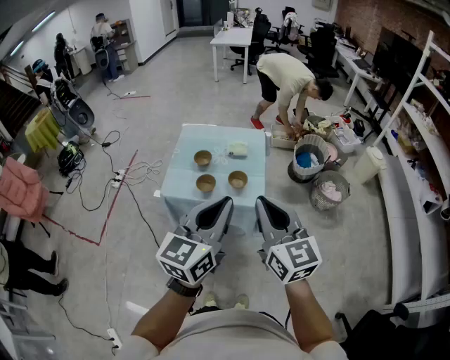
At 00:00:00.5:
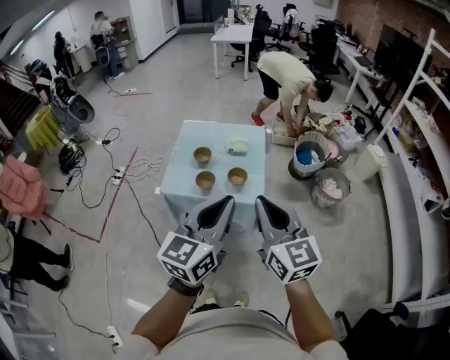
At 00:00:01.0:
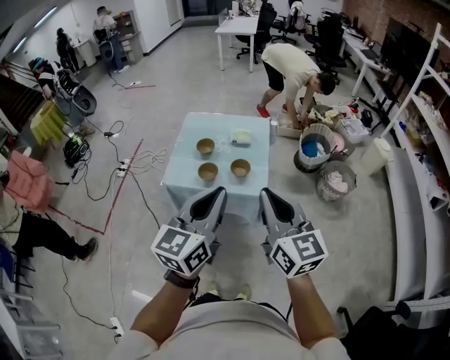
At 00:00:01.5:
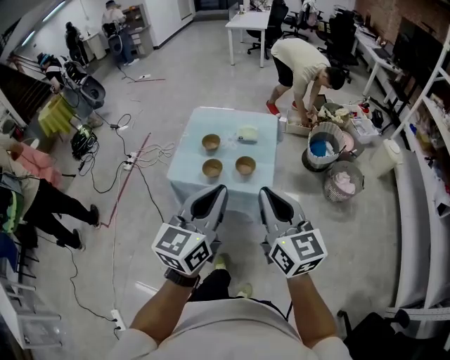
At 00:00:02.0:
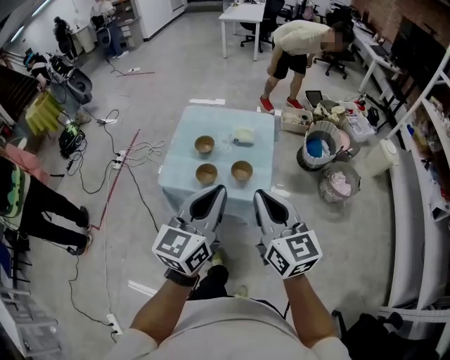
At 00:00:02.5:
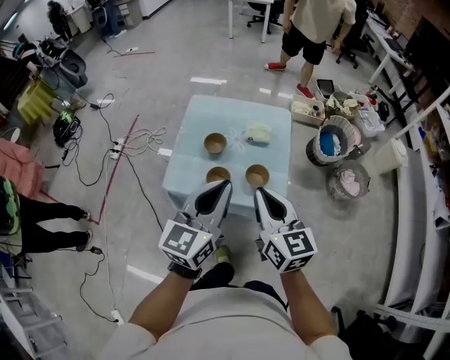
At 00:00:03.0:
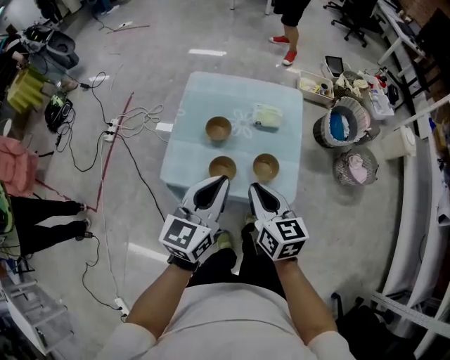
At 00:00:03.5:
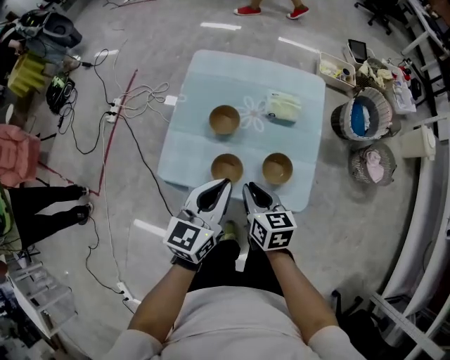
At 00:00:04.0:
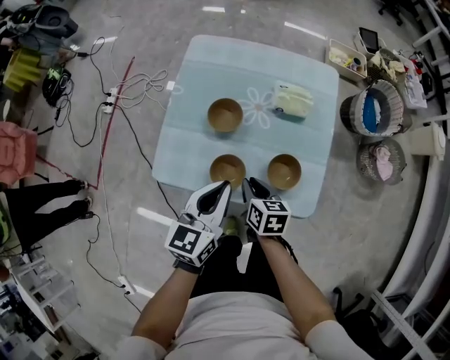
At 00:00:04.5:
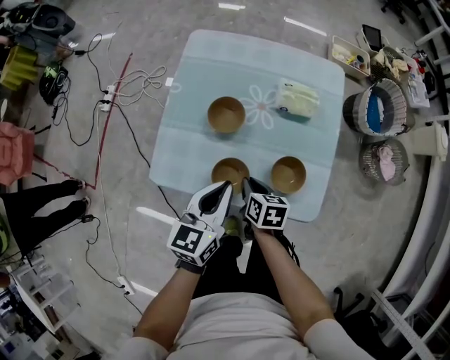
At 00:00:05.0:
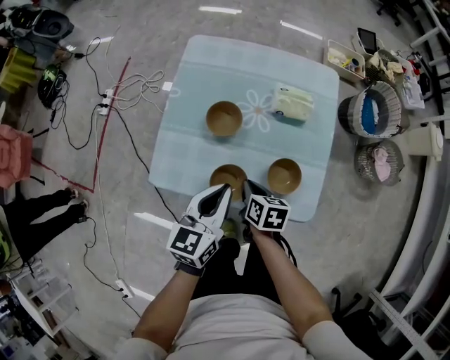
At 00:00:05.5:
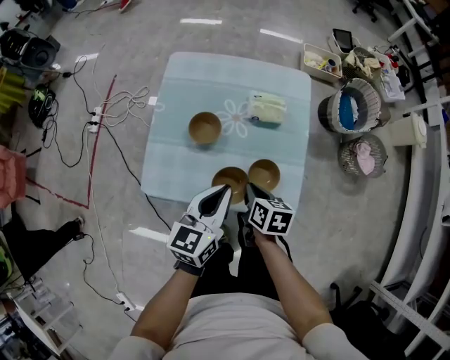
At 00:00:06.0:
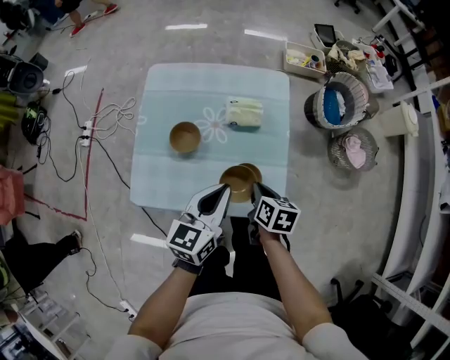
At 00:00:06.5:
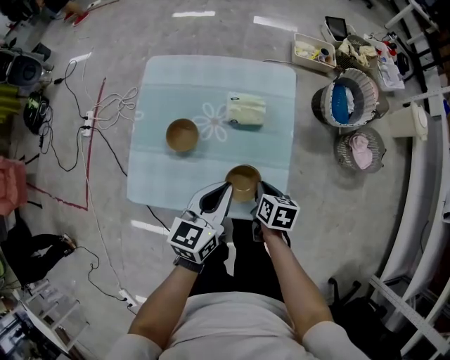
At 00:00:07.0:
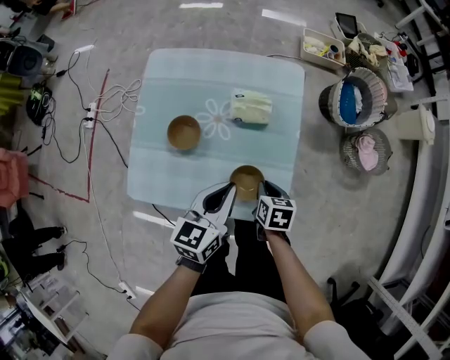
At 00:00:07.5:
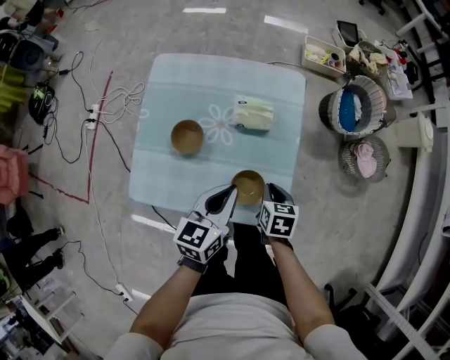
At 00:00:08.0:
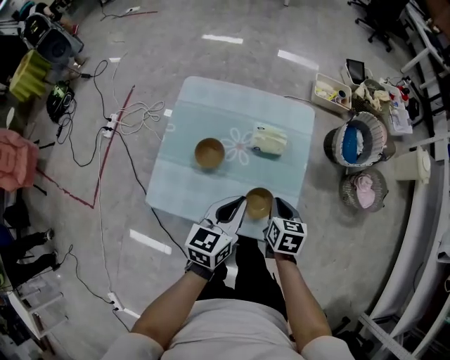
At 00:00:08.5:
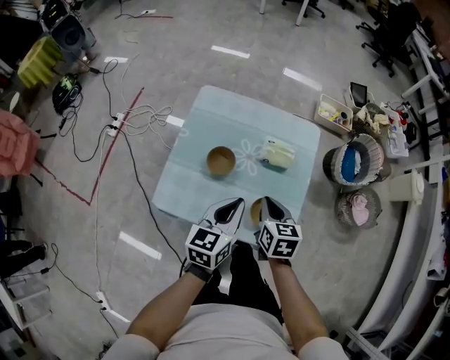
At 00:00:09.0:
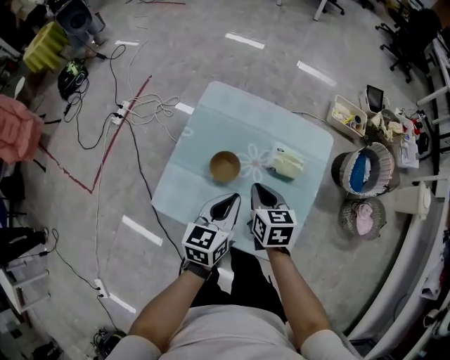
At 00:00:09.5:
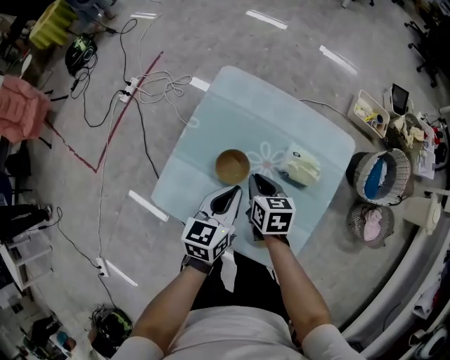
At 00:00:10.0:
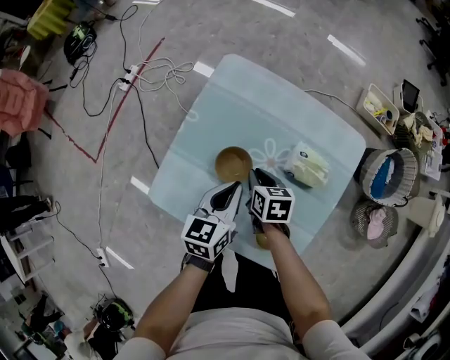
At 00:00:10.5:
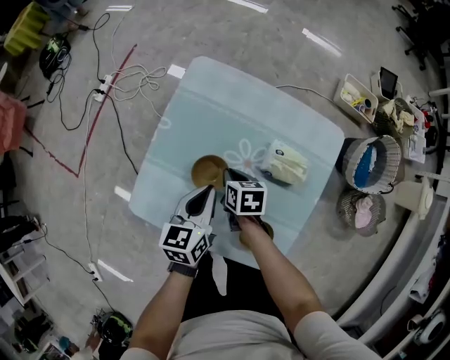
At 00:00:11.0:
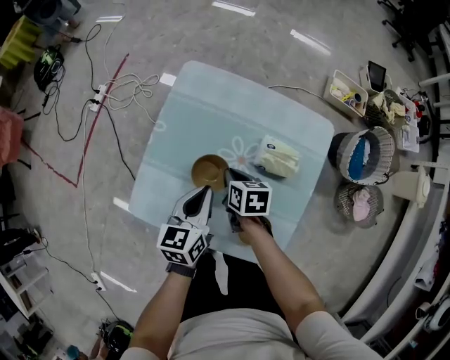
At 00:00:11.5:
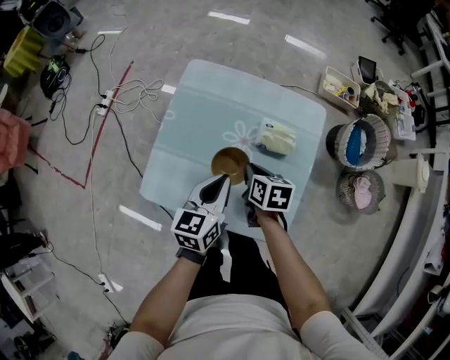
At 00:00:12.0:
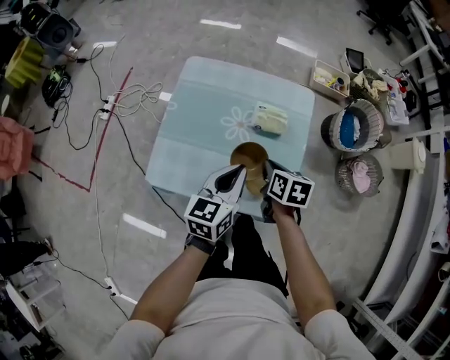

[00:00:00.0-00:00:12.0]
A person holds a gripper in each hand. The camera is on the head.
00:00:00.0 to 00:00:02.0: The grippers both shift forward and downward by about 10 cm.
00:00:02.0 to 00:00:04.0: The grippers both shift downward and forward by roughly 50 cm. The right gripper tilts its fingers approximately 40 degrees downward; the left gripper changes its angle by some 20 degrees.
00:00:04.0 to 00:00:06.0: Both grippers move to the right, approximately 10 cm.
00:00:06.0 to 00:00:08.0: The right gripper travels downward and back again, approximately 10 cm each way.
00:00:08.0 to 00:00:10.0: The left gripper changes place by about 20 cm, and changes its angle by roughly 20 degrees; the right gripper ends up approximately 25 cm from where it was, and swivels some 30 degrees.
00:00:10.0 to 00:00:12.0: The two grippers go about 20 cm backward, upward and to the right. The right gripper turns by some 20 degrees.

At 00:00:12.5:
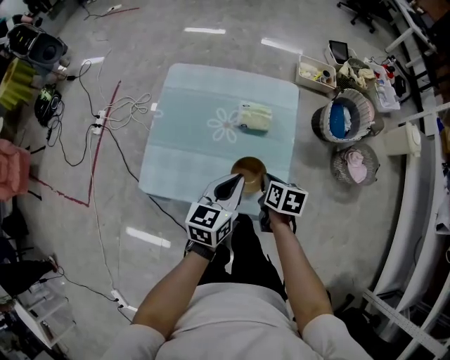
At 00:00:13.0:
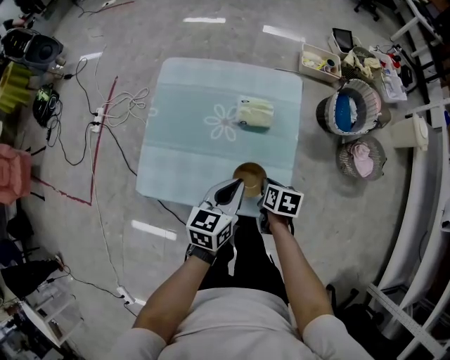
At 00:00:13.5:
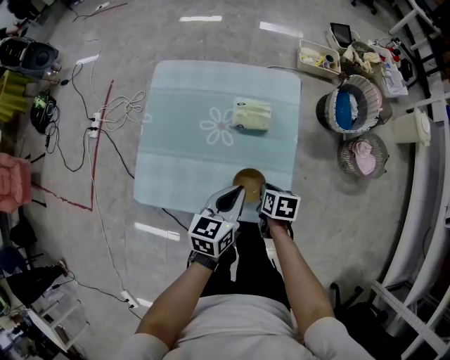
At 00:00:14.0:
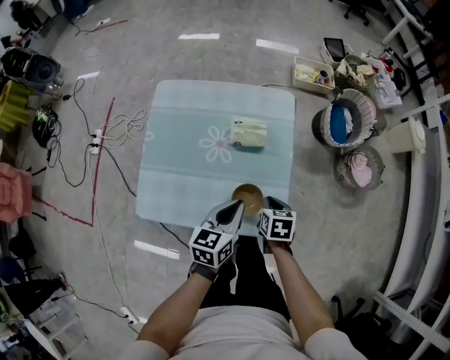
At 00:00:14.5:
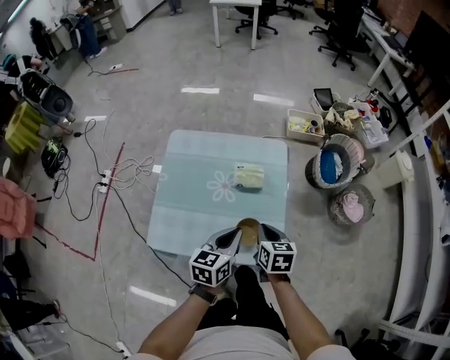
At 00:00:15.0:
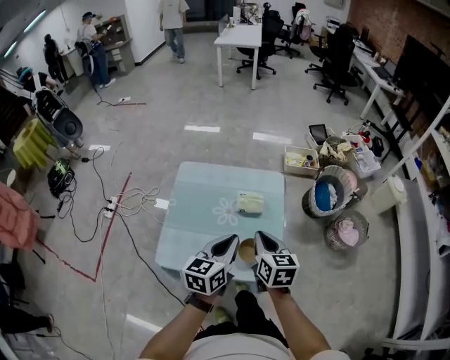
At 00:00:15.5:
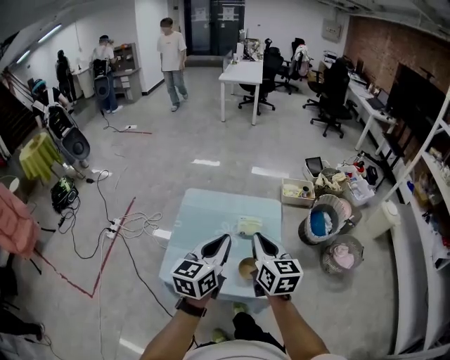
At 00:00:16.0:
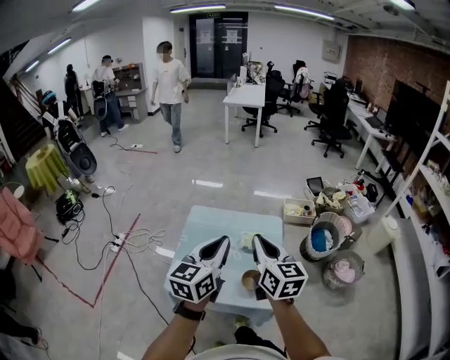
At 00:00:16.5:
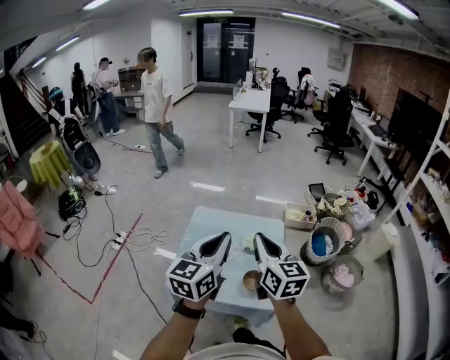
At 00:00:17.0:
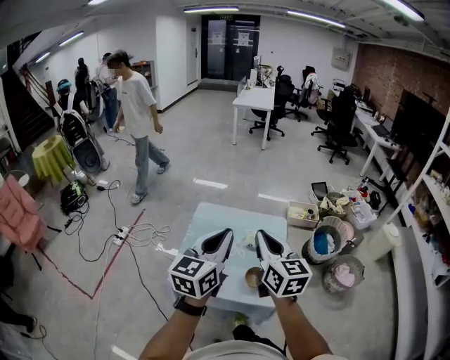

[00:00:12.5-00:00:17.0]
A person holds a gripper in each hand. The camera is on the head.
00:00:12.5 to 00:00:14.5: The right gripper moves upward, about 5 cm.
00:00:14.5 to 00:00:17.0: The two grippers go some 35 cm upward. The right gripper angles its fingers upward, by approximately 40 degrees; the left gripper turns by roughly 30 degrees.

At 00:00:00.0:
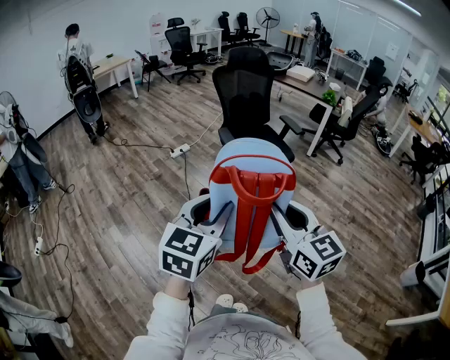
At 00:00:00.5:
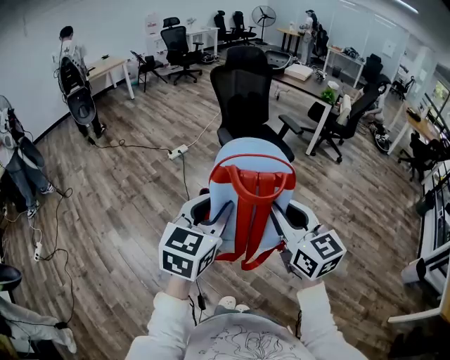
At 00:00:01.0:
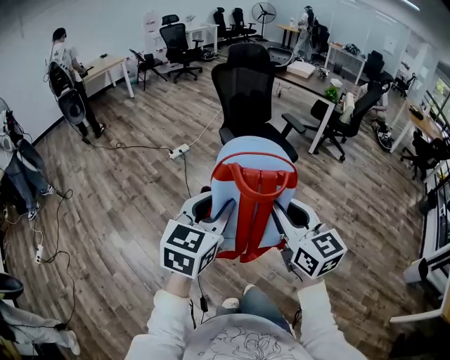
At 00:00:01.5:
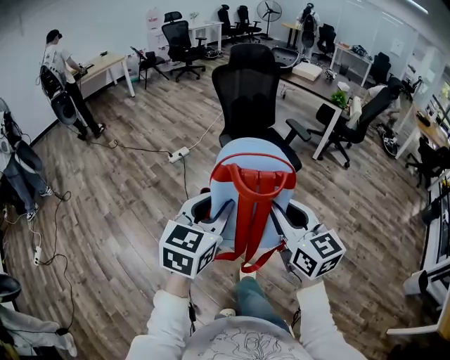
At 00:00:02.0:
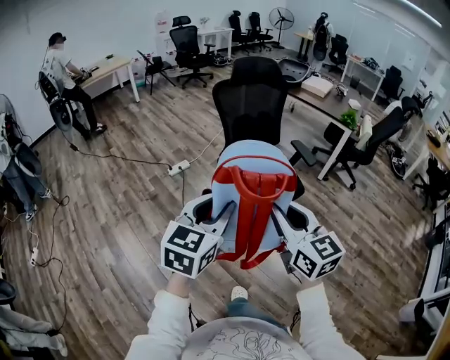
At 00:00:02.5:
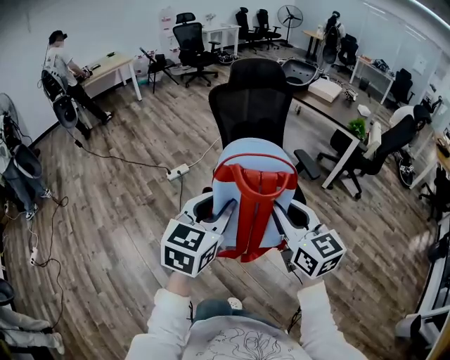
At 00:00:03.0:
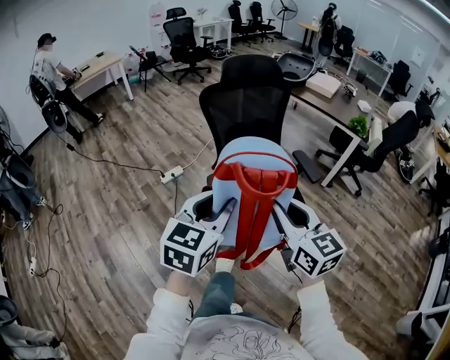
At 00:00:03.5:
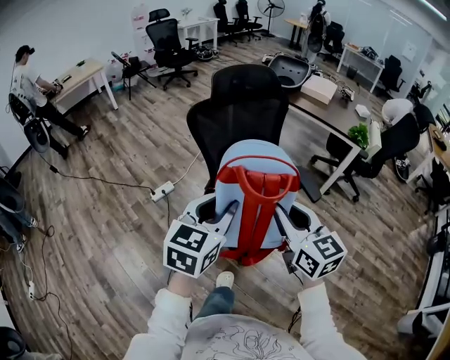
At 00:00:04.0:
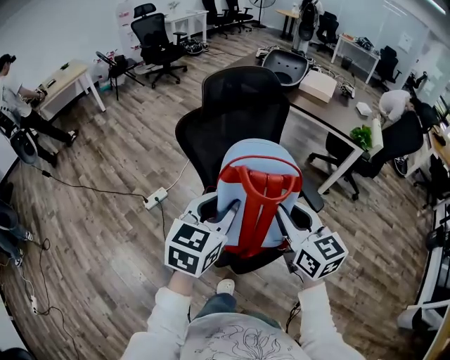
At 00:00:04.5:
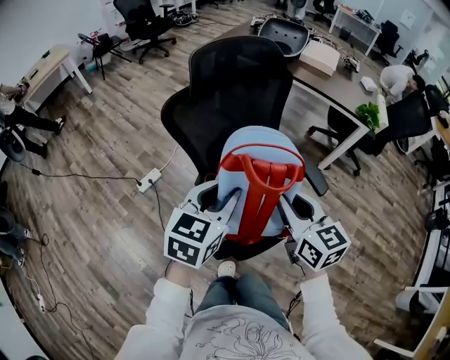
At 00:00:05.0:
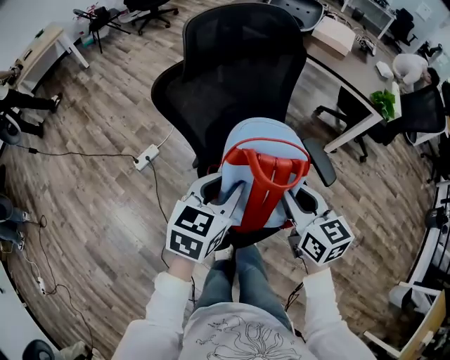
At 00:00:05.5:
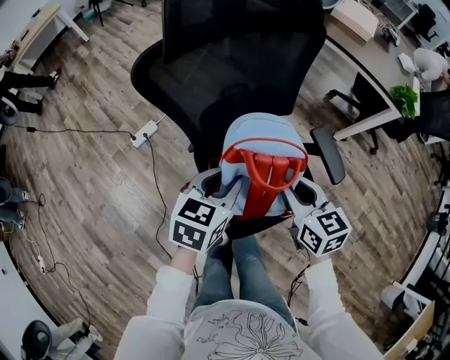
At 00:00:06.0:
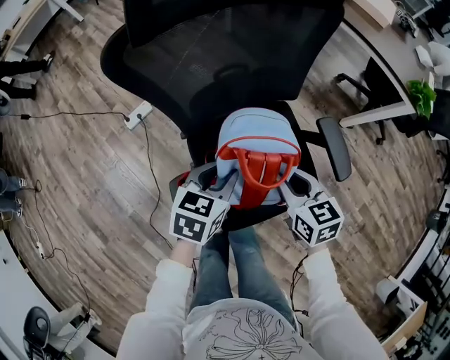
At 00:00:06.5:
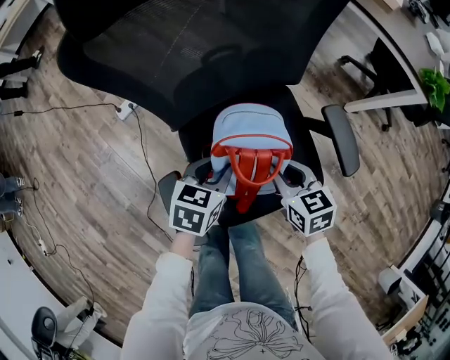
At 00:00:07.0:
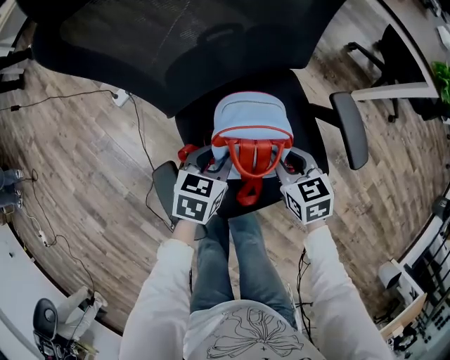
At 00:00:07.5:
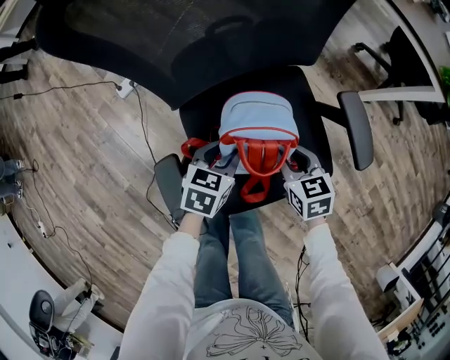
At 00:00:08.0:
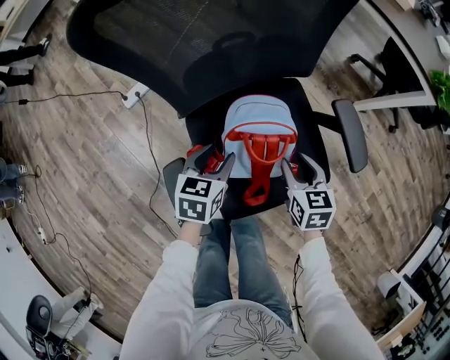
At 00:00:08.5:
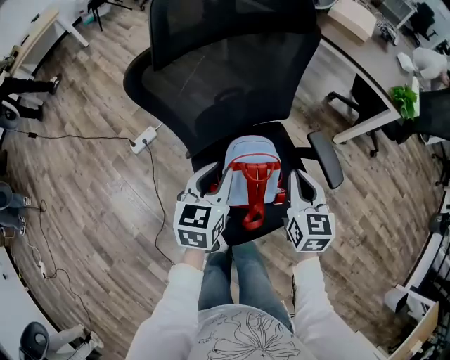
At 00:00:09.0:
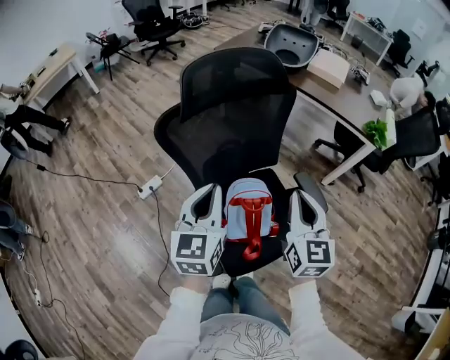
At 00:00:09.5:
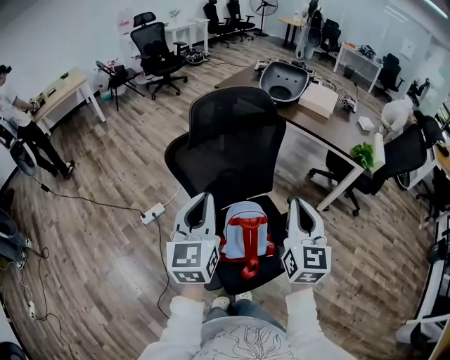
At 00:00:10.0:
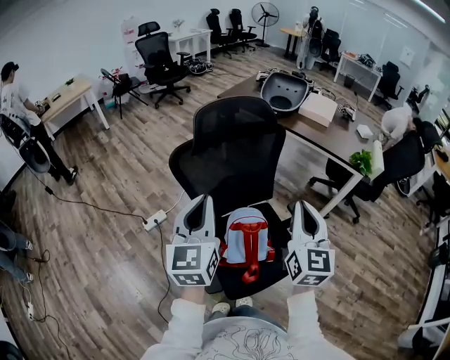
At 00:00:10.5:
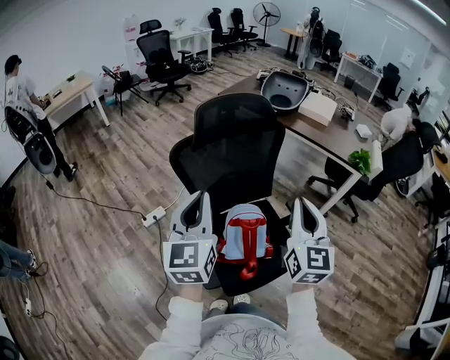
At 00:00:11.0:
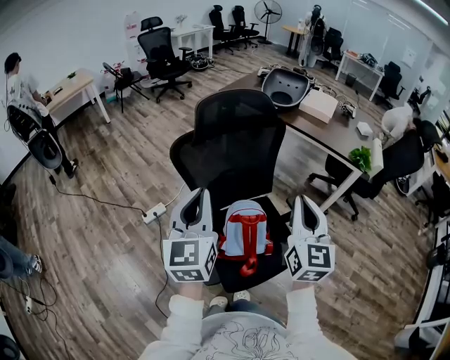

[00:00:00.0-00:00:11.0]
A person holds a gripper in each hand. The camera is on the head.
00:00:00.0 to 00:00:02.0: The grippers both shift forward by some 30 cm.
00:00:02.0 to 00:00:03.5: Both grippers move forward, roughly 35 cm.
00:00:03.5 to 00:00:05.5: Both grippers travel together forward and downward, about 35 cm. The left gripper swivels some 20 degrees, while the right gripper swivels some 20 degrees.
00:00:05.5 to 00:00:07.5: The grippers both shift downward by some 25 cm.
00:00:07.5 to 00:00:09.0: The grippers both shift upward by some 40 cm. The right gripper tilts its fingers some 40 degrees upward, and closes up. The left gripper tilts its fingers about 40 degrees upward, and closes up.
00:00:09.0 to 00:00:11.0: Both grippers travel together upward and backward, roughly 15 cm.
